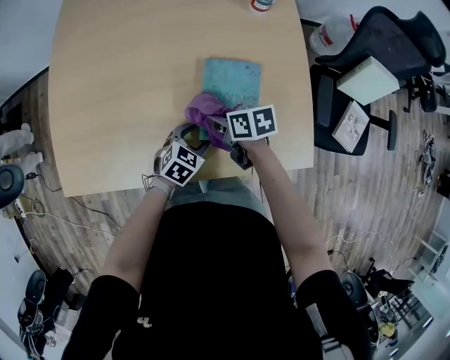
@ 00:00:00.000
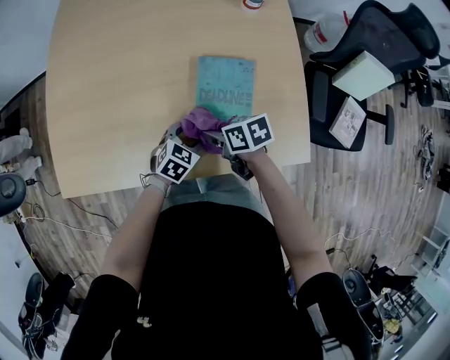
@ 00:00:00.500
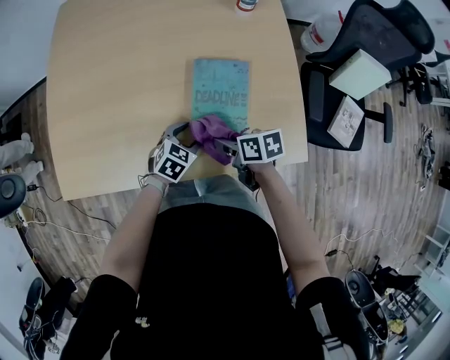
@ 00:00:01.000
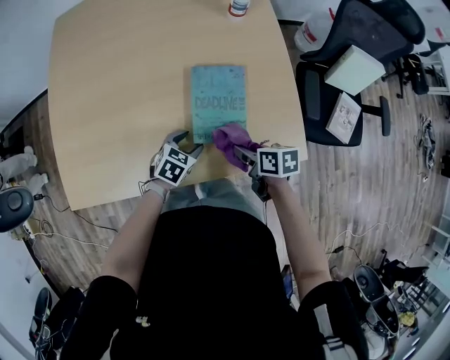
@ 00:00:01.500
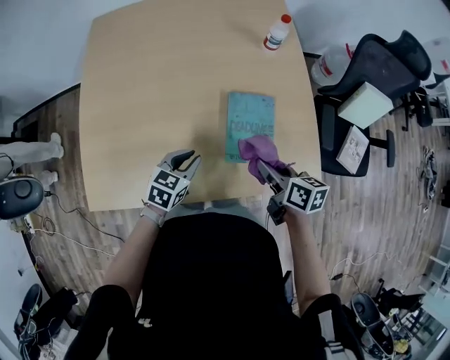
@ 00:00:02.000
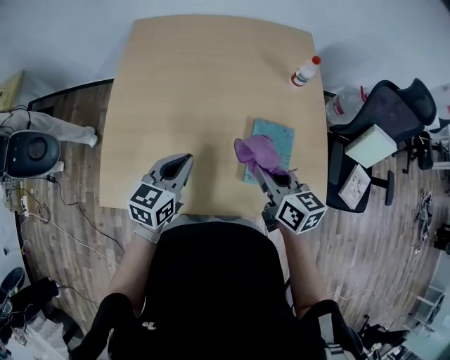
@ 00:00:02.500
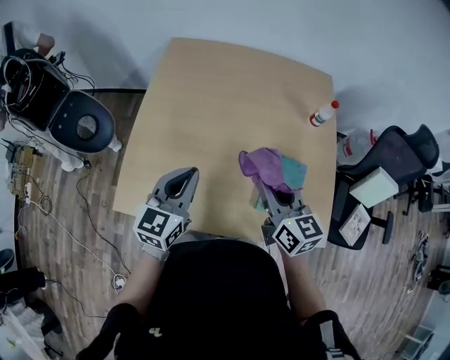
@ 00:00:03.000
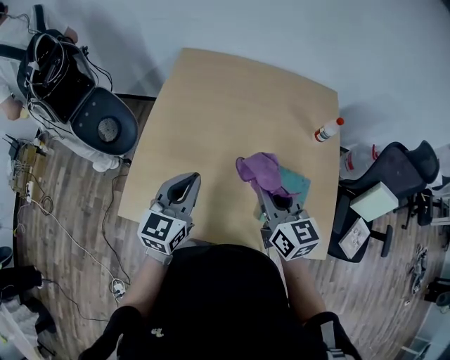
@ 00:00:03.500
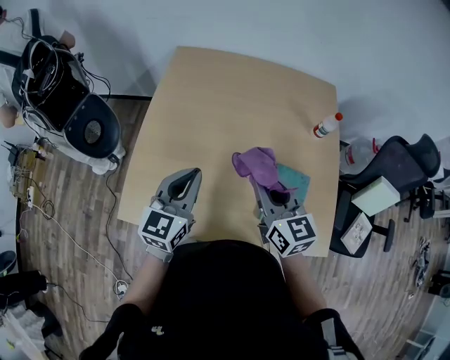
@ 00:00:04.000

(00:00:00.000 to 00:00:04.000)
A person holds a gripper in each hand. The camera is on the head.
00:00:00.000 - 00:00:02.000: The left gripper moves upward and to the left, some 15 cm, and closes; the right gripper is displaced upward, backward and to the right by roughly 15 cm, and changes its angle by about 30 degrees.
00:00:02.000 - 00:00:04.000: The right gripper is displaced upward, to the left and forward by approximately 30 cm, and rotates some 40 degrees; the left gripper goes roughly 30 cm upward and to the left, and tilts its fingers some 30 degrees upward.

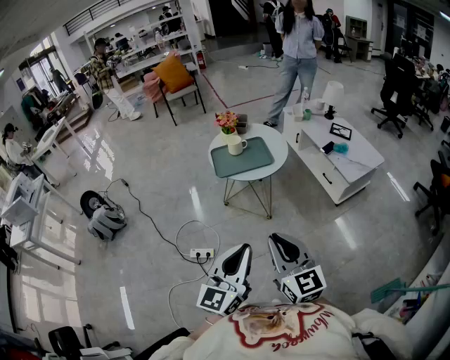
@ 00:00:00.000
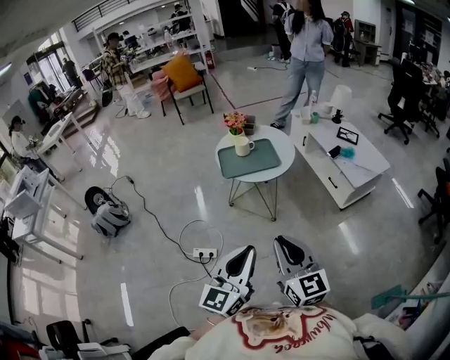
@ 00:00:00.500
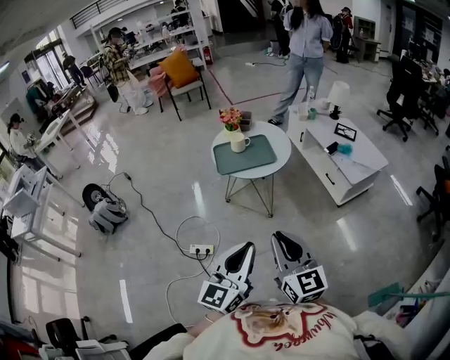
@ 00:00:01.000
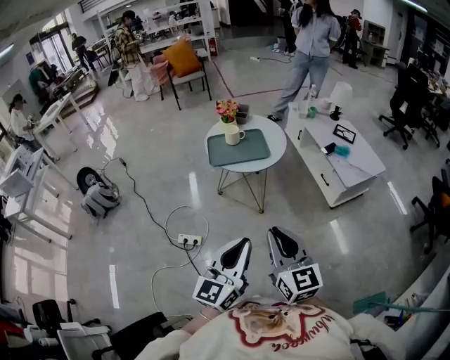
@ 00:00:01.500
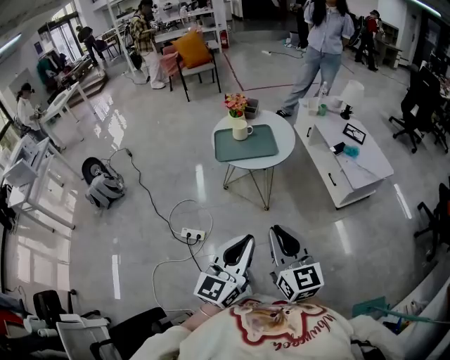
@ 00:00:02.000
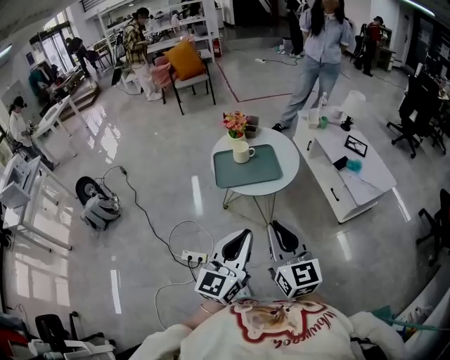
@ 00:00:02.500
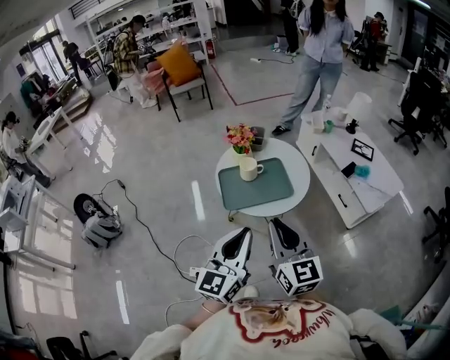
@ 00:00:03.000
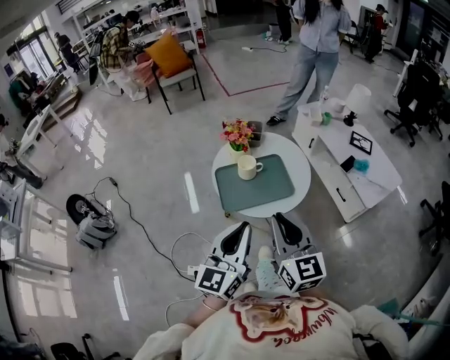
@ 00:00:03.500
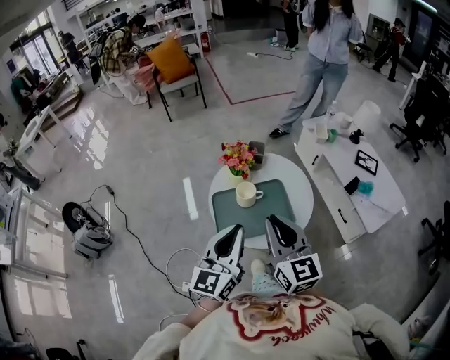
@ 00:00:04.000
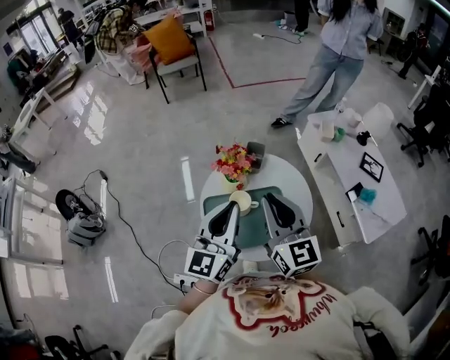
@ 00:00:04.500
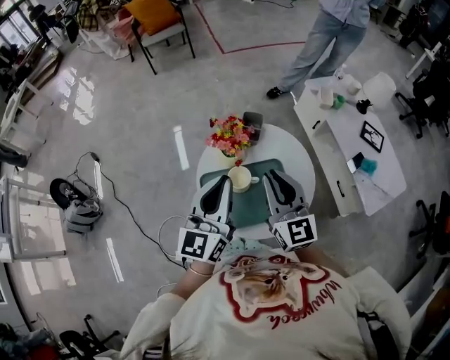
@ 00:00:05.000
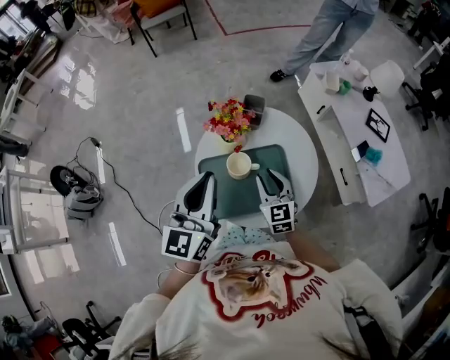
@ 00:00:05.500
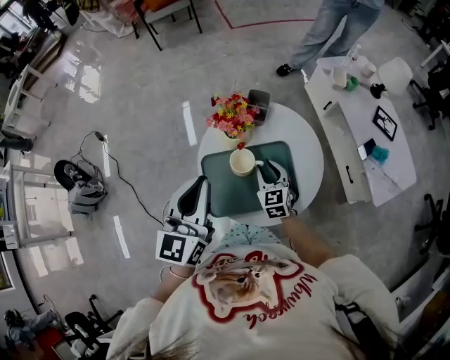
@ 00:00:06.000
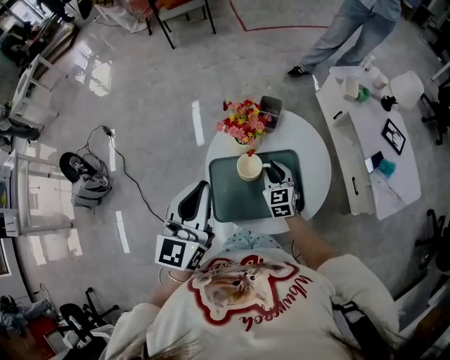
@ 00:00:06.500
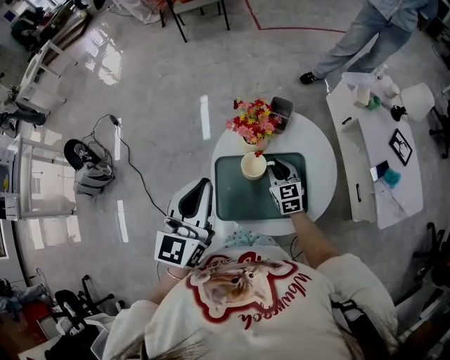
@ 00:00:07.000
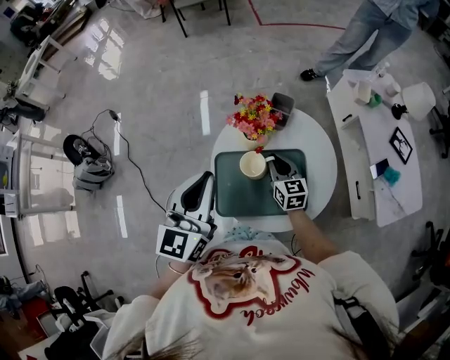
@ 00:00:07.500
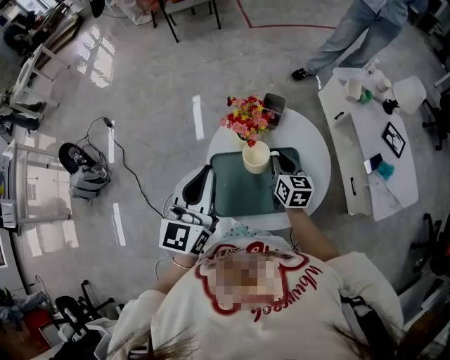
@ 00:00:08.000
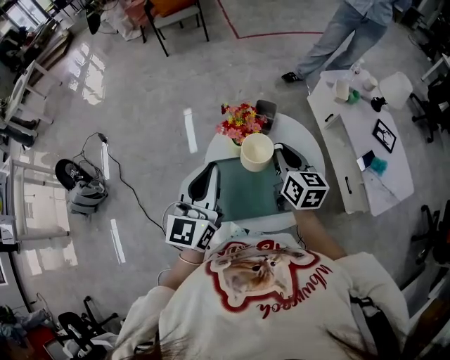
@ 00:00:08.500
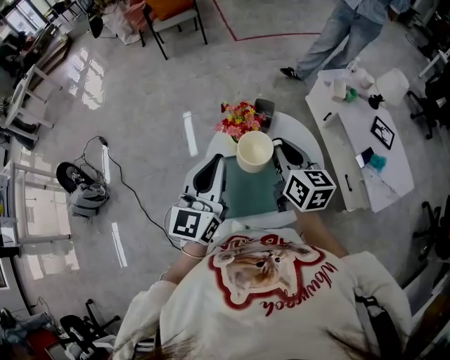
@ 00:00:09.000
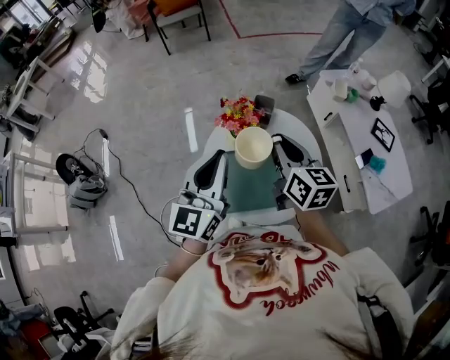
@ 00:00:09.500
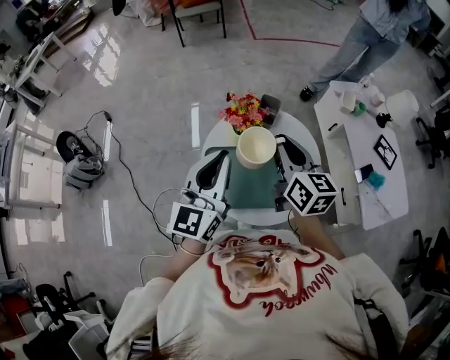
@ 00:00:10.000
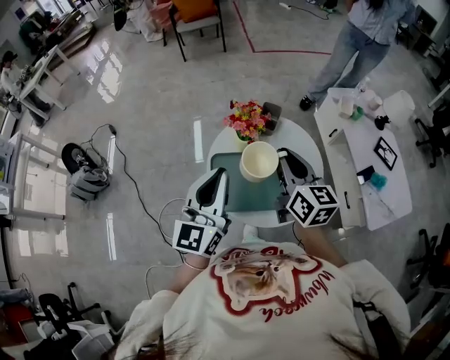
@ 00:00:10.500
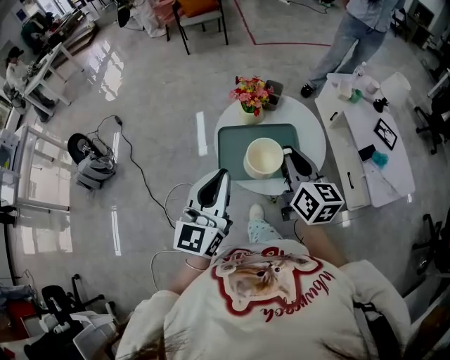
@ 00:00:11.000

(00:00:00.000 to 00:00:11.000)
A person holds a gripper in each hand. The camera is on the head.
00:00:00.000 - 00:00:02.000: The left gripper travels to the right by approximately 5 cm, while the right gripper ends up approximately 5 cm from where it was.
00:00:02.000 - 00:00:03.500: The left gripper moves forward and to the left, roughly 35 cm; the right gripper is displaced forward by roughly 30 cm.
00:00:03.500 - 00:00:05.500: The left gripper is displaced forward by roughly 25 cm. The right gripper moves forward and downward, some 35 cm, and changes its angle by roughly 20 degrees.
00:00:05.500 - 00:00:07.500: The right gripper is displaced forward and downward by some 10 cm.
00:00:07.500 - 00:00:09.000: The left gripper moves some 5 cm. The right gripper goes some 20 cm upward.
00:00:09.000 - 00:00:11.000: Both grippers move backward, roughly 20 cm.

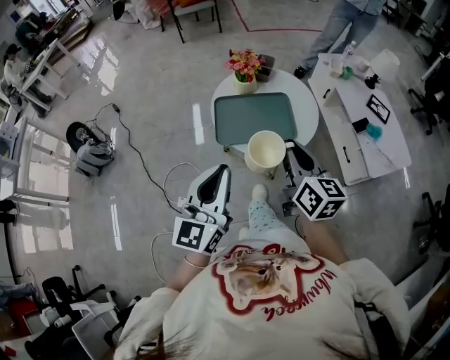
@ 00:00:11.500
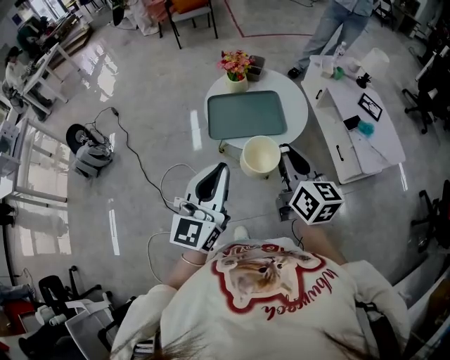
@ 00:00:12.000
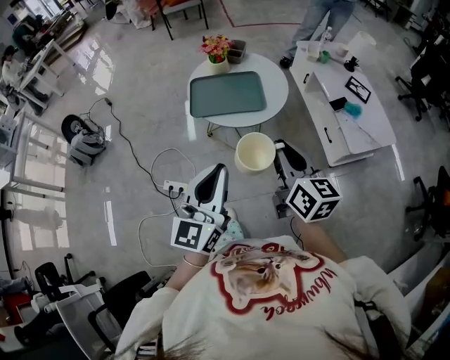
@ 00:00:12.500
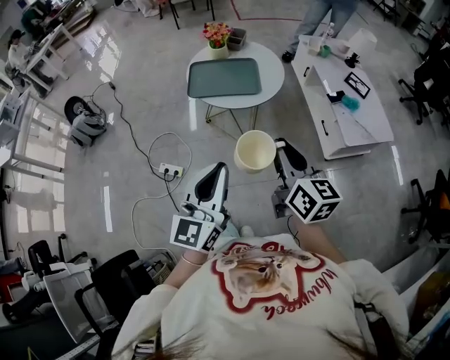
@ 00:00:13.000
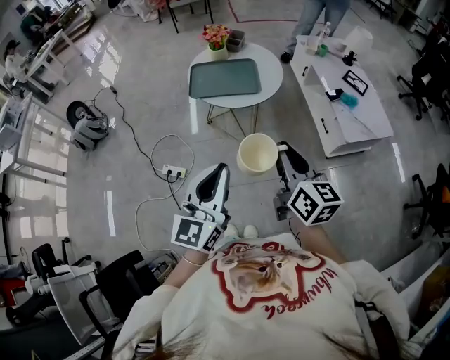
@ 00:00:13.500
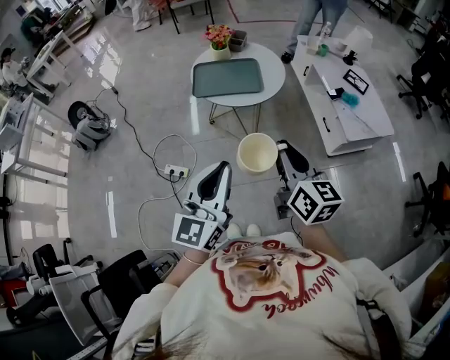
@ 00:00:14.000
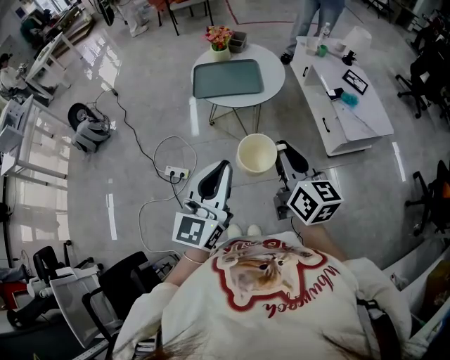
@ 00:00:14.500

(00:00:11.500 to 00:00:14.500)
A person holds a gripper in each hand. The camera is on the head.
00:00:11.500 - 00:00:13.000: The two grippers go roughly 25 cm backward and to the right.
00:00:13.000 - 00:00:14.500: The grippers make only small movements.

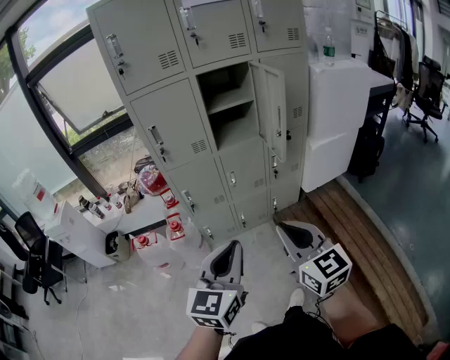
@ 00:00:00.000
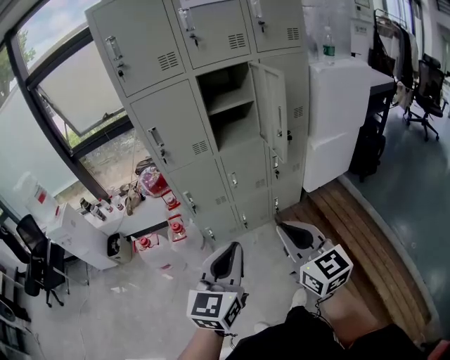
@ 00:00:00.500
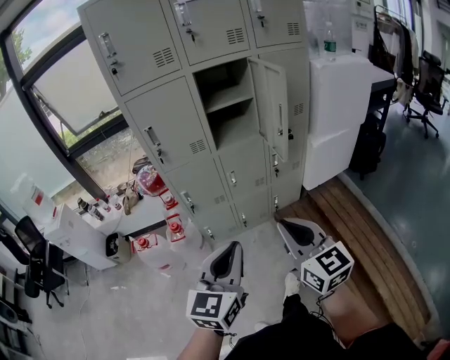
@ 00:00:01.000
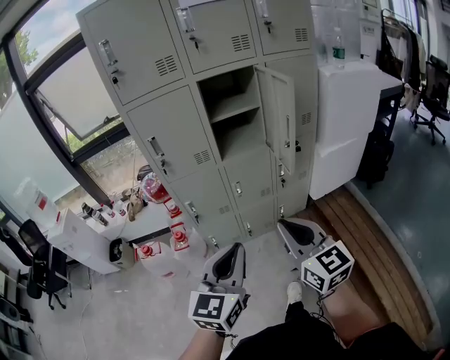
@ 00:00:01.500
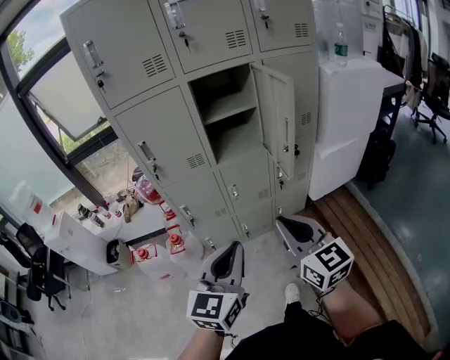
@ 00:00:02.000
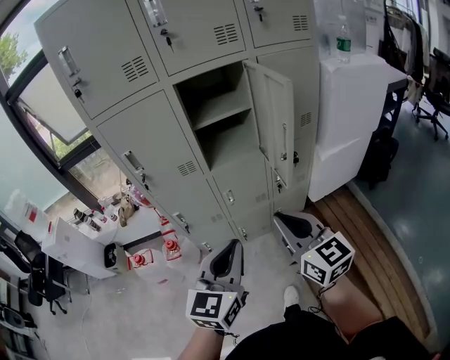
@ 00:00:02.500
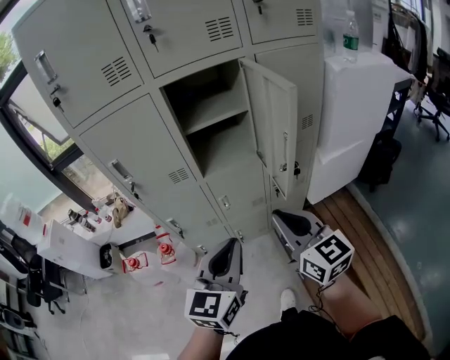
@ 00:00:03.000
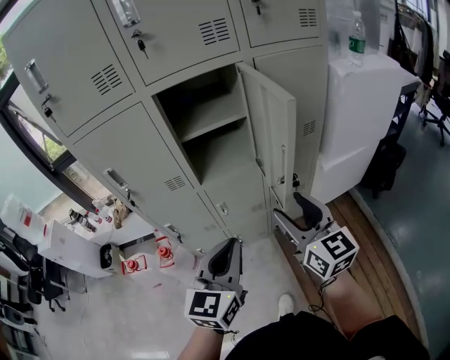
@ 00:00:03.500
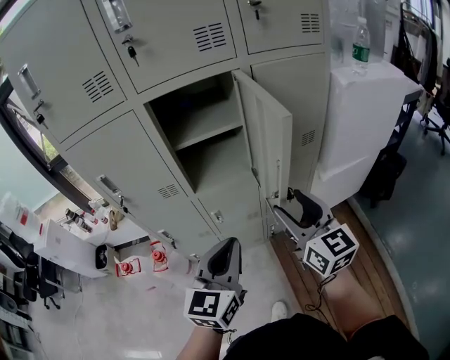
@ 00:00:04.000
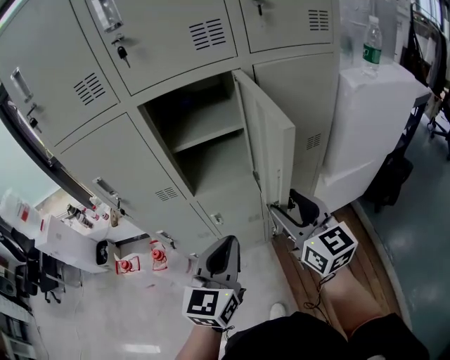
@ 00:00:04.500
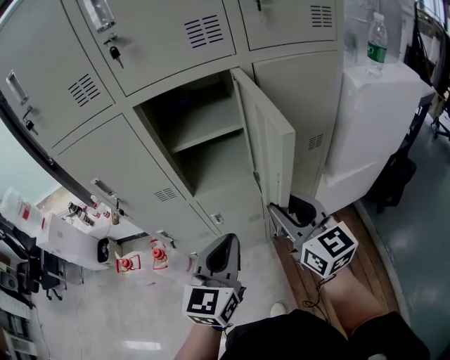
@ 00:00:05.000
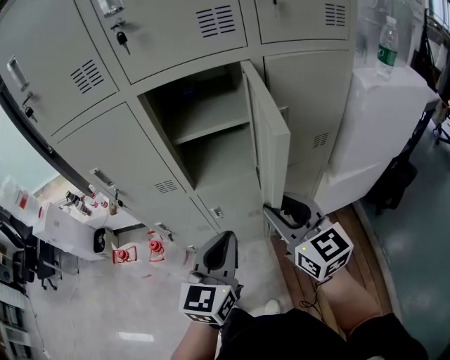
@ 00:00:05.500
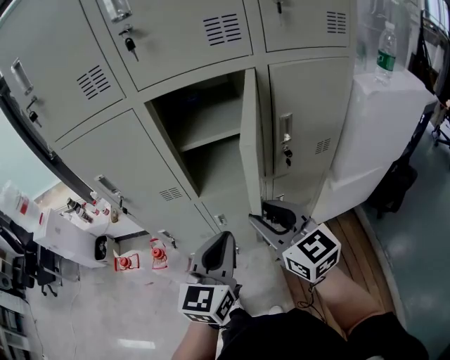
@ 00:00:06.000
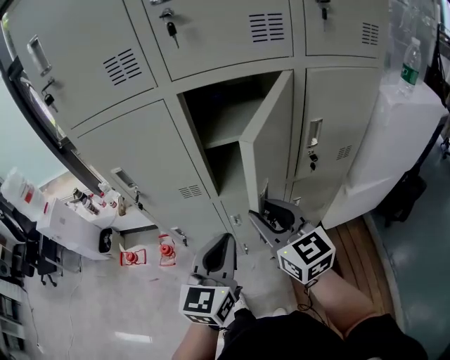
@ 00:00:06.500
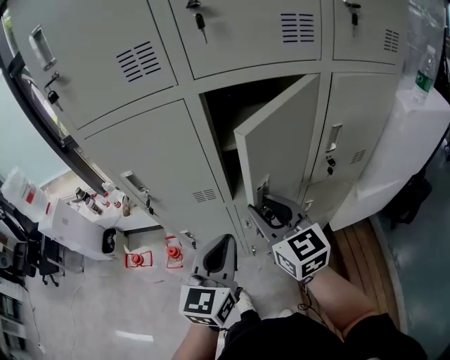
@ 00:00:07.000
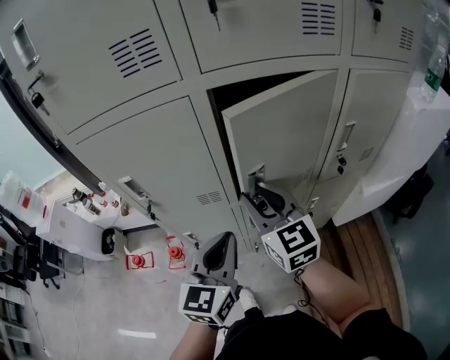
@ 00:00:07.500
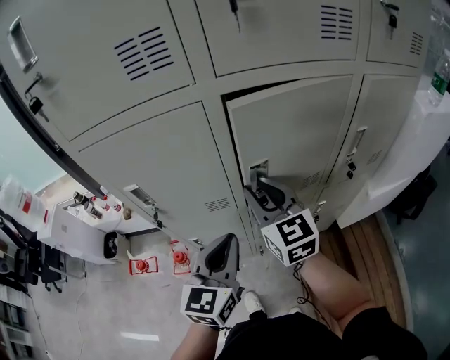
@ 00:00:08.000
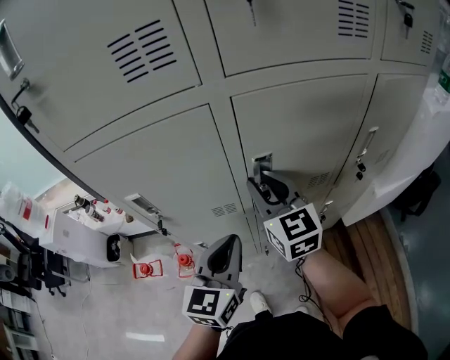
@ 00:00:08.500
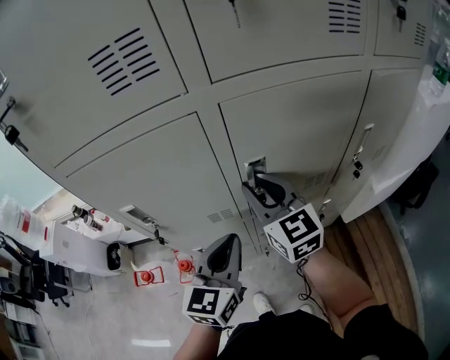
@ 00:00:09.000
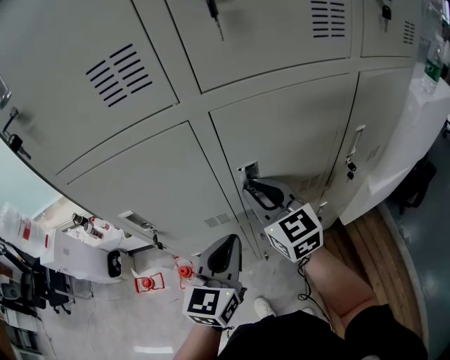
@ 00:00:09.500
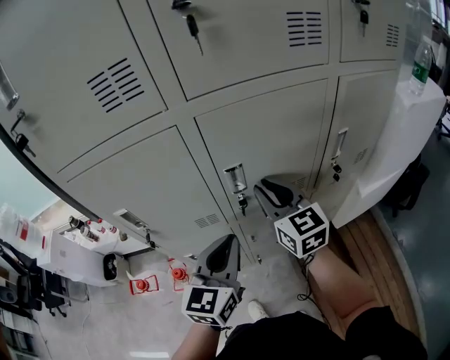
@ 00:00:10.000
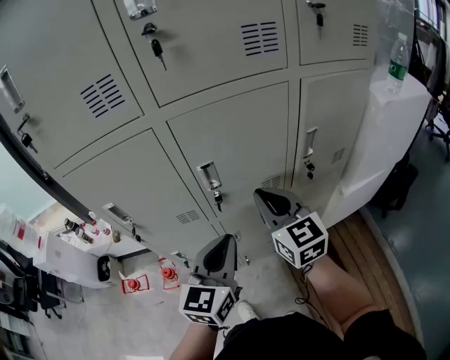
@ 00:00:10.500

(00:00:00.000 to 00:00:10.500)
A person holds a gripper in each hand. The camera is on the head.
00:00:00.000 - 00:00:02.000: The grippers both shift forward by roughly 10 cm.
00:00:02.000 - 00:00:04.000: The grippers both shift forward and to the right by roughly 25 cm. The right gripper opens up.
00:00:04.000 - 00:00:06.500: The right gripper shifts approximately 15 cm to the left and forward, and closes its fingers. The left gripper goes about 10 cm forward and to the left.
00:00:06.500 - 00:00:08.500: The grippers both shift forward and to the left by approximately 15 cm.
00:00:08.500 - 00:00:10.500: The right gripper travels to the right and backward by about 15 cm, while the left gripper heads to the right, covering some 10 cm.
